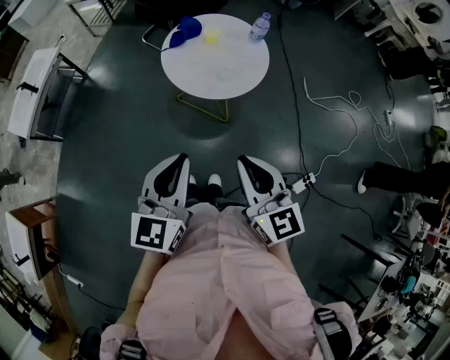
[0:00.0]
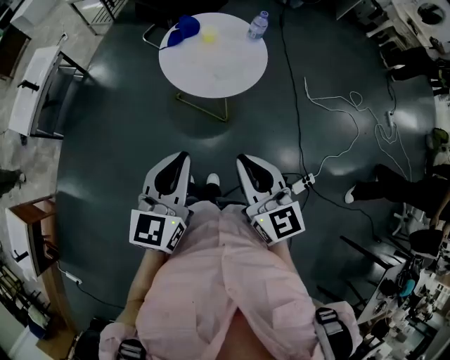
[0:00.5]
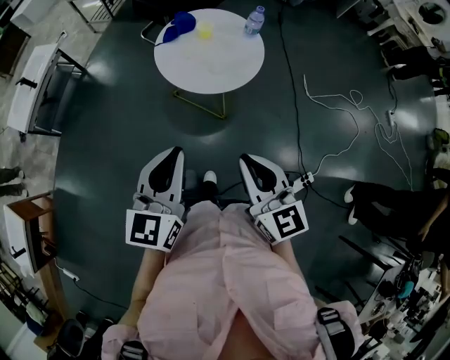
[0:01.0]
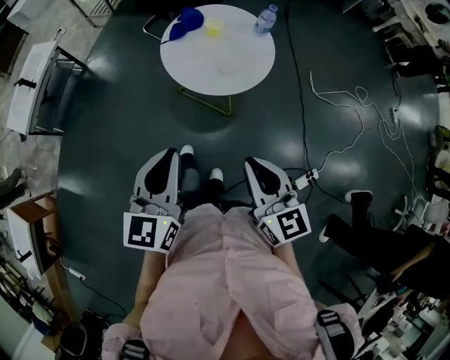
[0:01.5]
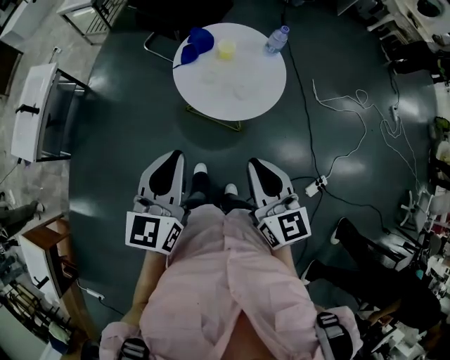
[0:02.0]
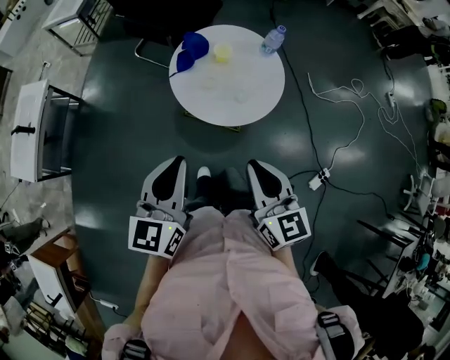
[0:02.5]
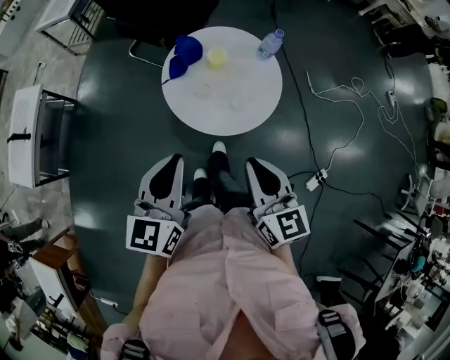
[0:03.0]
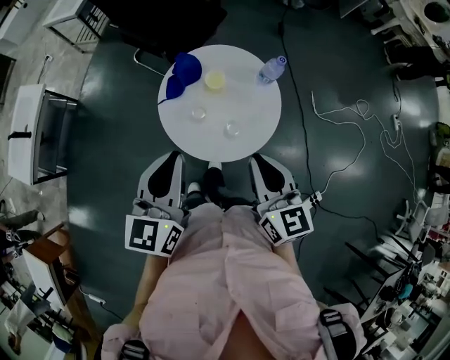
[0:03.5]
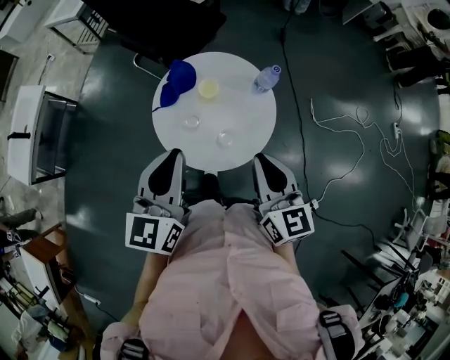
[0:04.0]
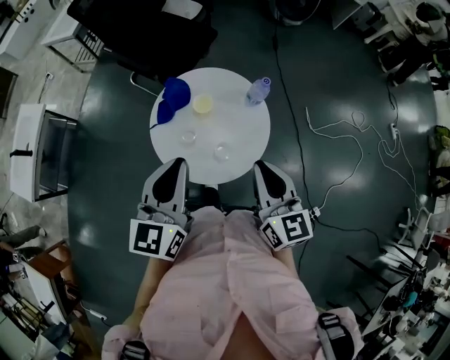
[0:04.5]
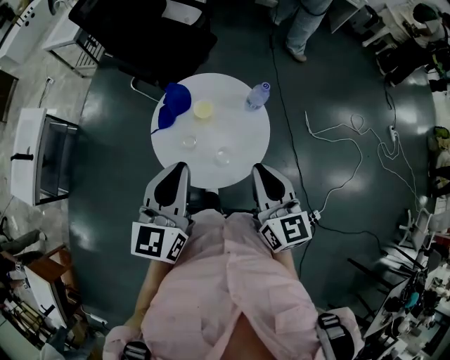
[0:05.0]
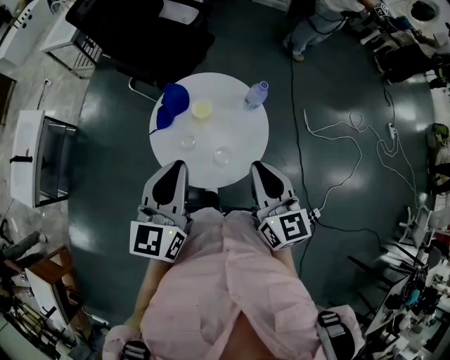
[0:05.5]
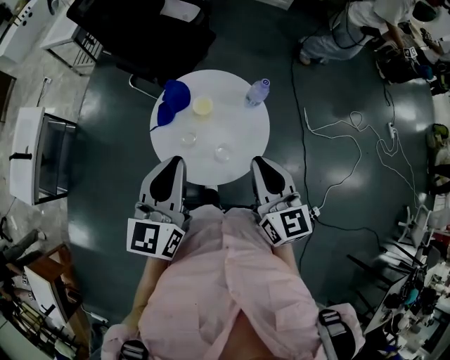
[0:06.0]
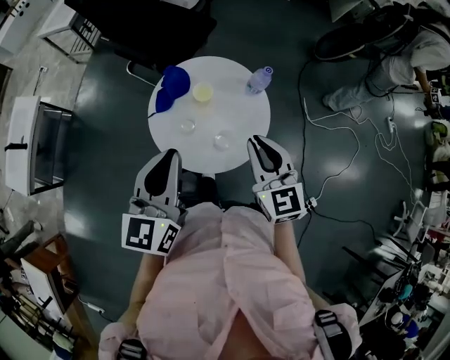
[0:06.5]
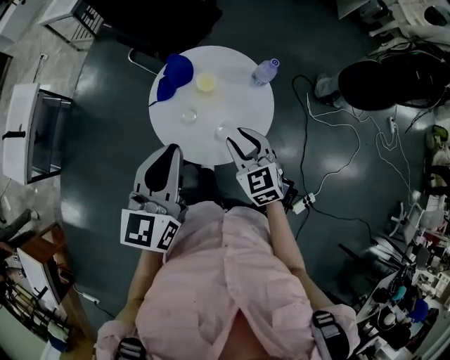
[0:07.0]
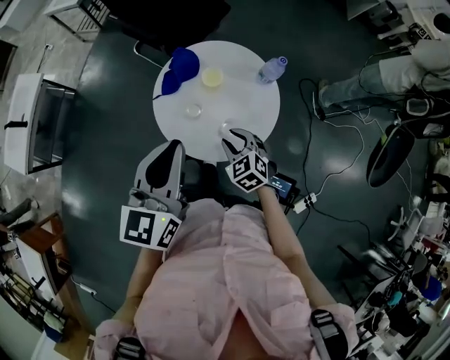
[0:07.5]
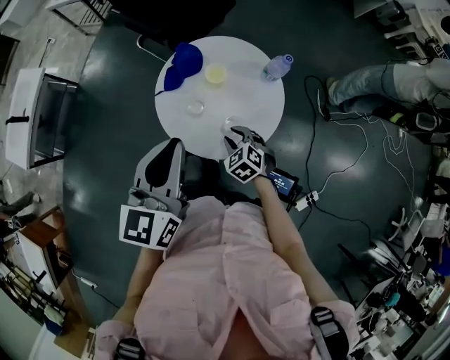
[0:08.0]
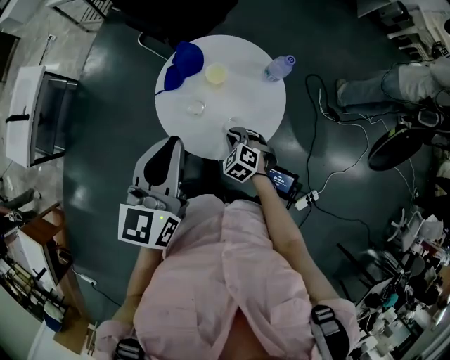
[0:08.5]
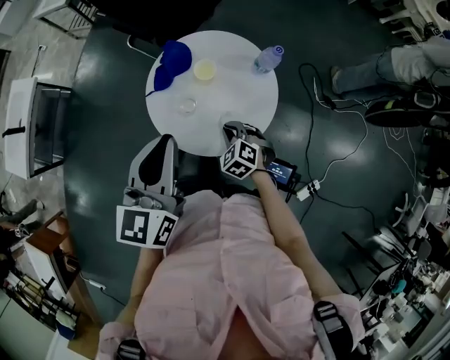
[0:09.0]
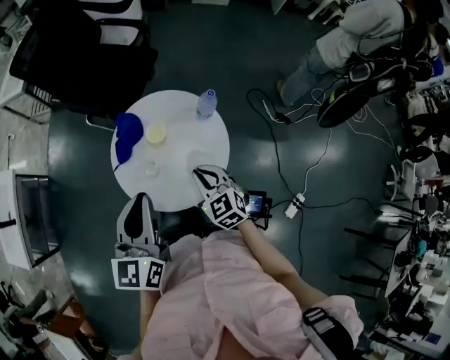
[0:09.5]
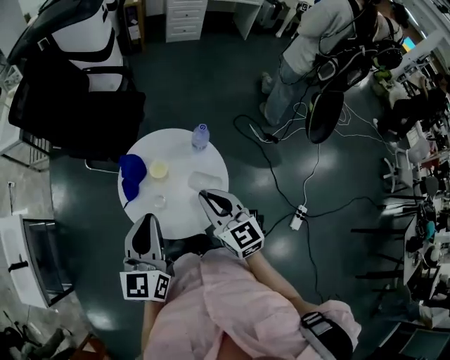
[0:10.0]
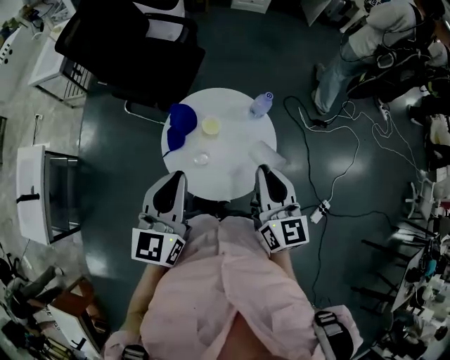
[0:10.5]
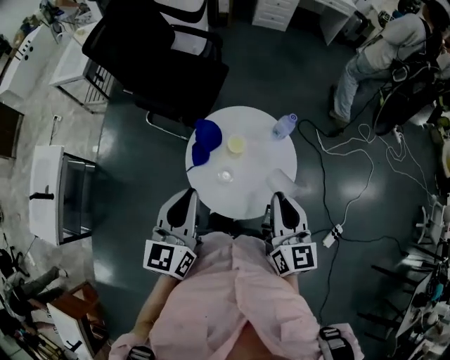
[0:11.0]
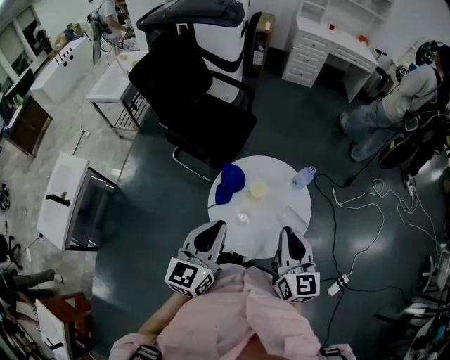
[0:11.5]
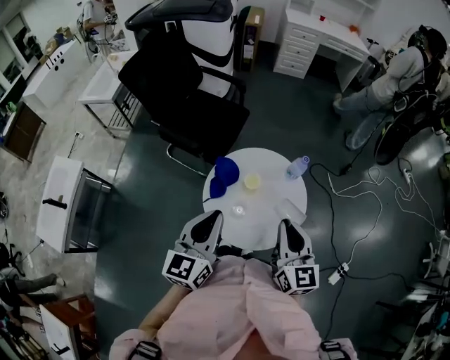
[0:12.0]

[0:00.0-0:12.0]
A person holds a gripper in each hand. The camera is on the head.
0:00.0 to 0:02.0: The left gripper goes roughly 15 cm forward and to the left. Meanwhile the right gripper goes roughly 10 cm forward.
0:02.0 to 0:04.0: The left gripper goes approximately 20 cm forward. The right gripper travels forward and to the right by roughly 25 cm.
0:04.0 to 0:06.0: The grippers stay close to where they were, moving slightly.
0:06.0 to 0:08.0: The right gripper goes about 30 cm downward, tilts its fingers approximately 50 degrees downward, and opens.
0:08.0 to 0:10.0: The left gripper shifts by about 5 cm. The right gripper is displaced upward by roughly 25 cm, points its fingers about 40 degrees further upward, and closes up.
0:10.0 to 0:12.0: The left gripper is displaced to the left by about 10 cm; the right gripper is displaced upward by approximately 5 cm.

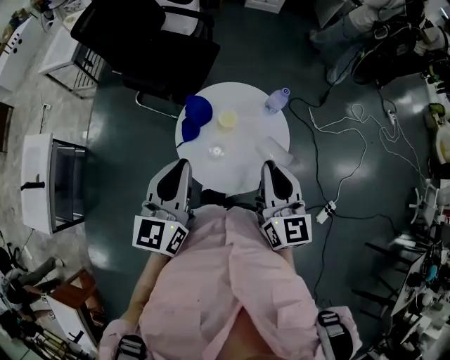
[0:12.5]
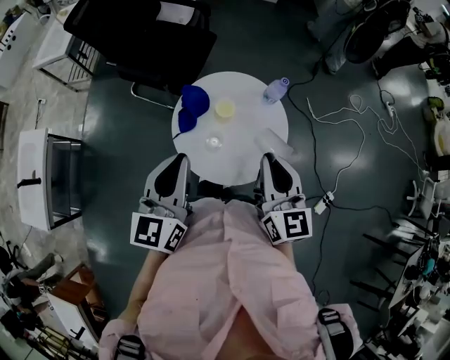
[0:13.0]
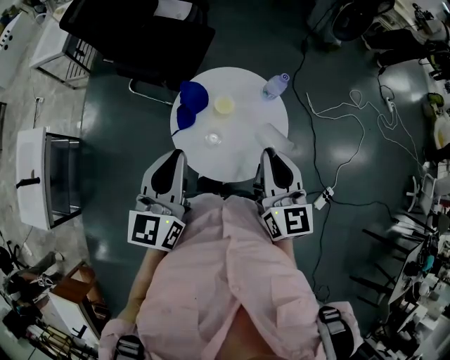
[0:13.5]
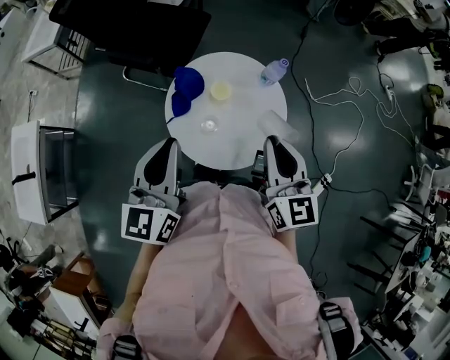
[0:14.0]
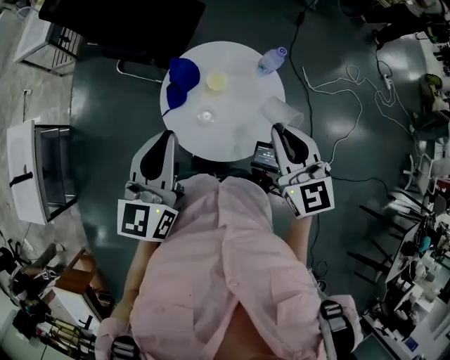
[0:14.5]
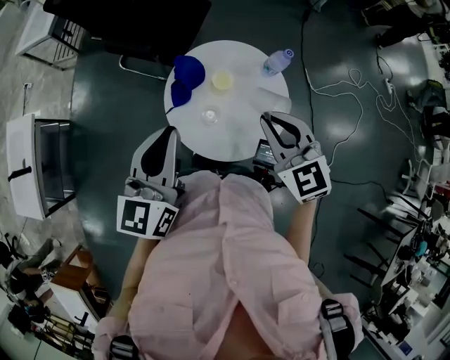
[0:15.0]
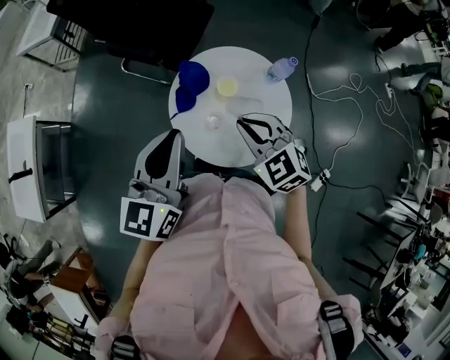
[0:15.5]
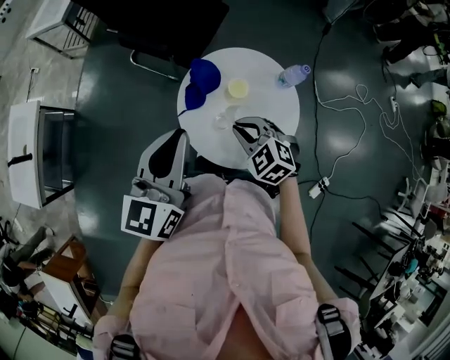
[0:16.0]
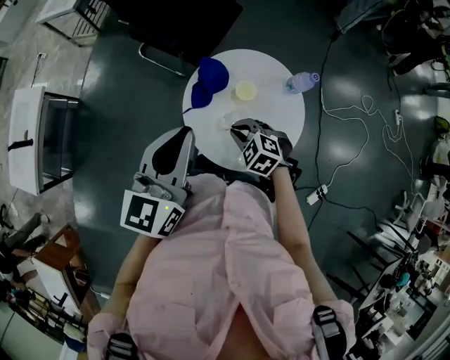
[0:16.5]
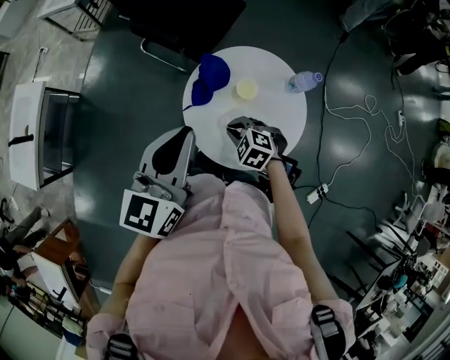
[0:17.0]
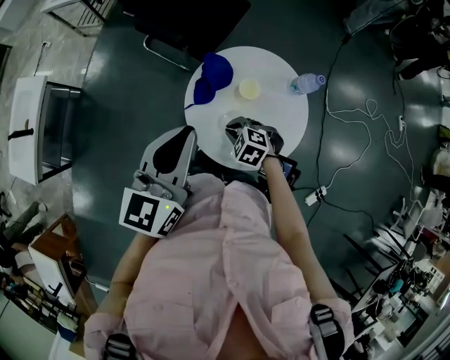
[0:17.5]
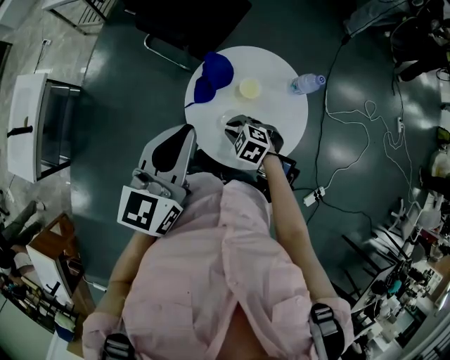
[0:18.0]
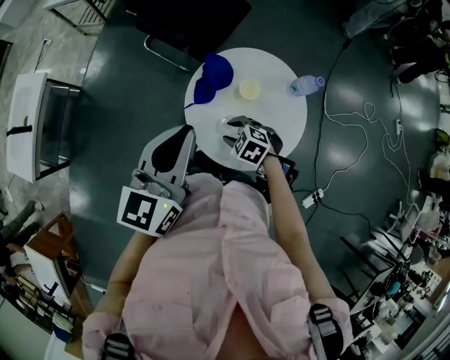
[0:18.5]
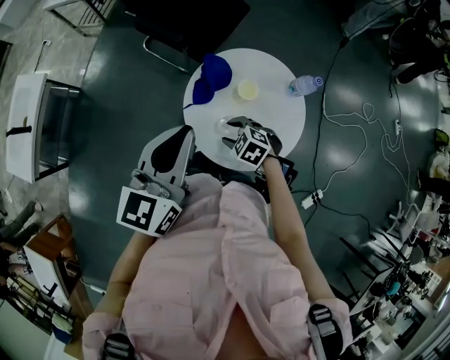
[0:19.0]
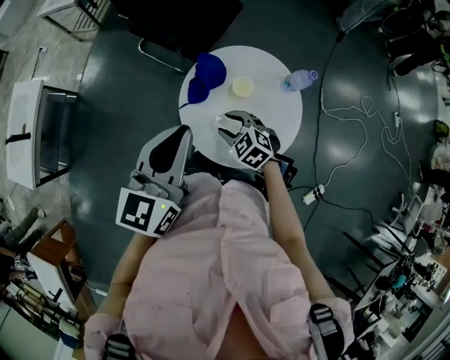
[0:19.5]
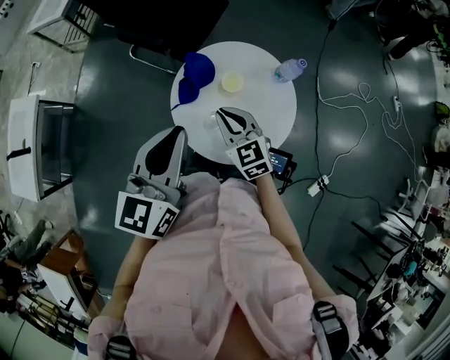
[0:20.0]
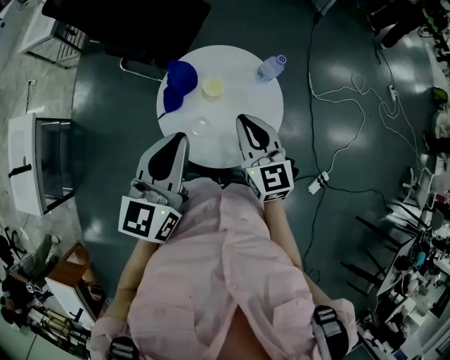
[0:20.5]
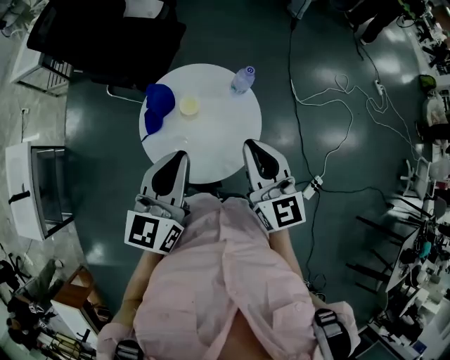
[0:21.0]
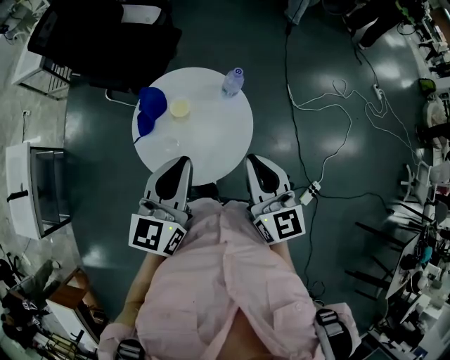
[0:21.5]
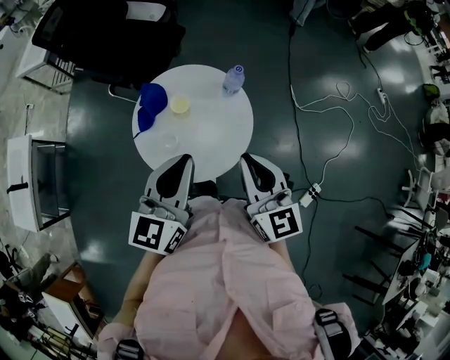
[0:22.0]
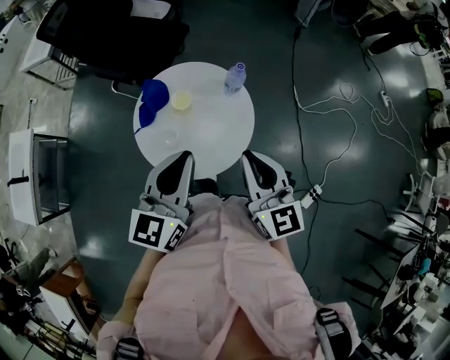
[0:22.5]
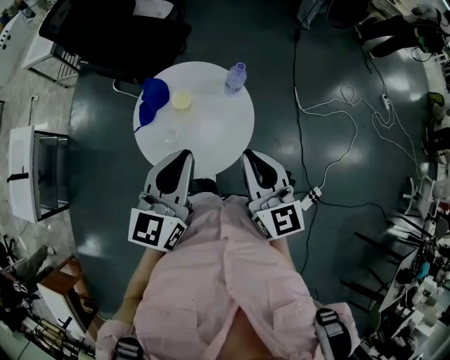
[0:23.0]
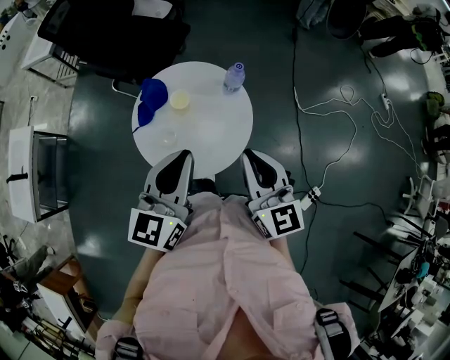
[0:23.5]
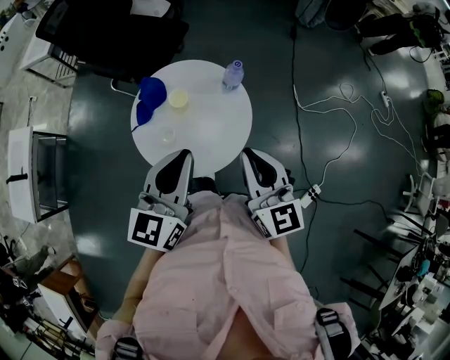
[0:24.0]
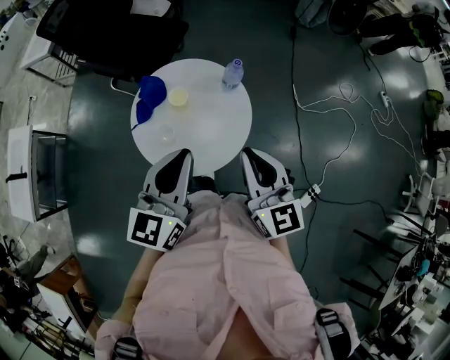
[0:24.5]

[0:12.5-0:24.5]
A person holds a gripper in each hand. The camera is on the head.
0:12.5 to 0:14.5: There are only small adjustments of the grippers.
0:14.5 to 0:16.5: The right gripper travels downward and to the left by about 25 cm, and angles its fingers downward, by roughly 40 degrees.
0:16.5 to 0:18.5: The right gripper goes some 5 cm downward, and opens up.
0:18.5 to 0:20.5: The left gripper changes place by roughly 10 cm. The right gripper goes approximately 20 cm upward, angles its fingers upward, by roughly 50 degrees, and closes up.
0:20.5 to 0:22.5: The right gripper is displaced to the right, backward and upward by some 15 cm, while the left gripper heads to the right, covering about 15 cm.
0:22.5 to 0:24.5: The two grippers keep their place.

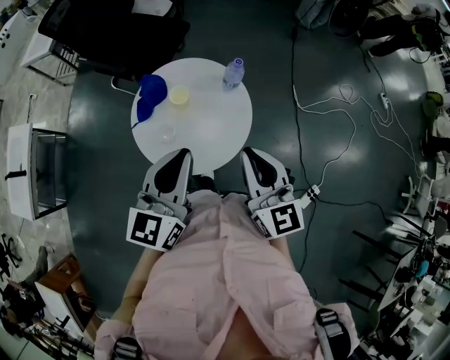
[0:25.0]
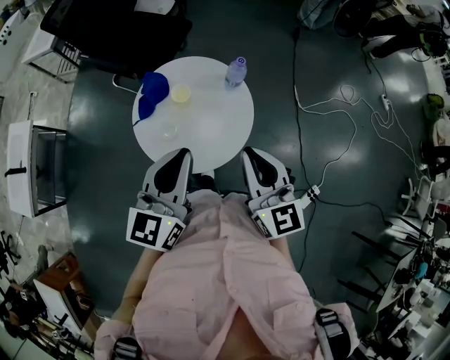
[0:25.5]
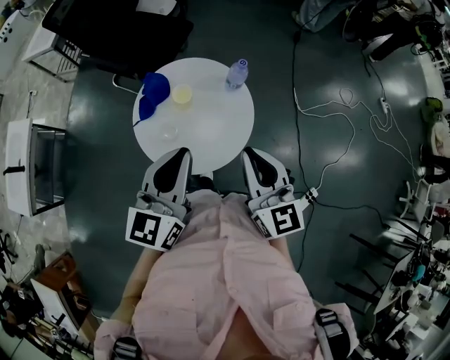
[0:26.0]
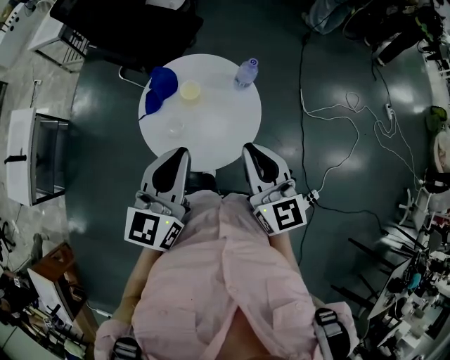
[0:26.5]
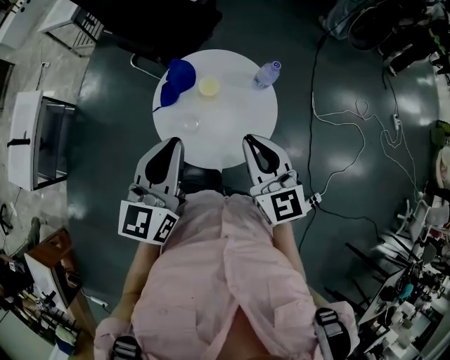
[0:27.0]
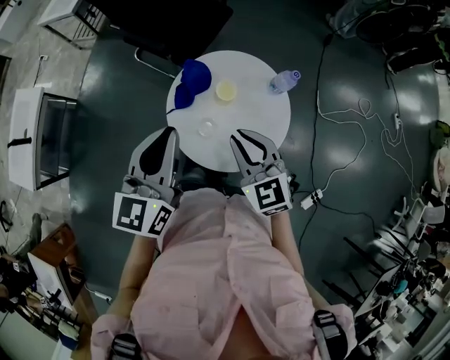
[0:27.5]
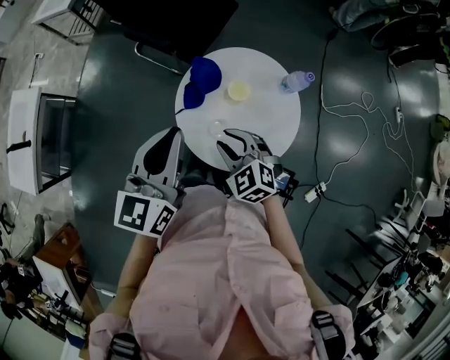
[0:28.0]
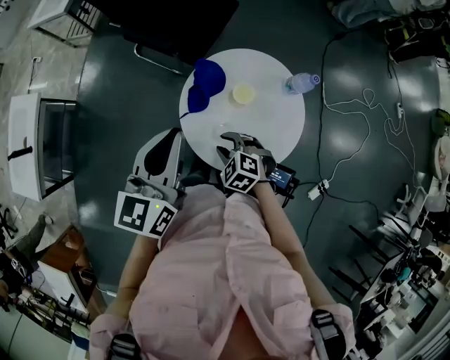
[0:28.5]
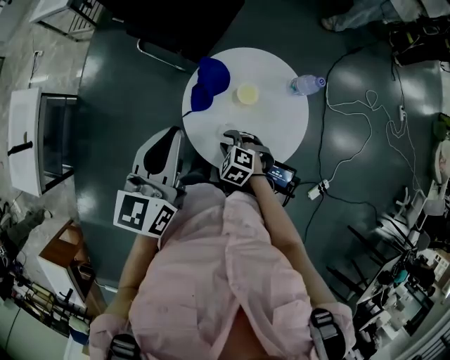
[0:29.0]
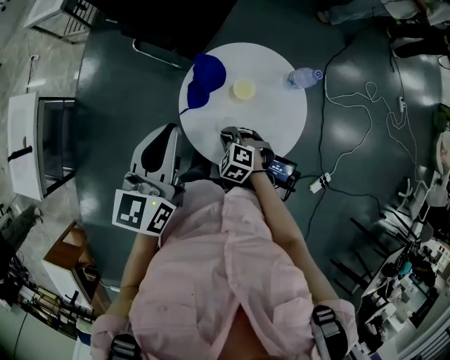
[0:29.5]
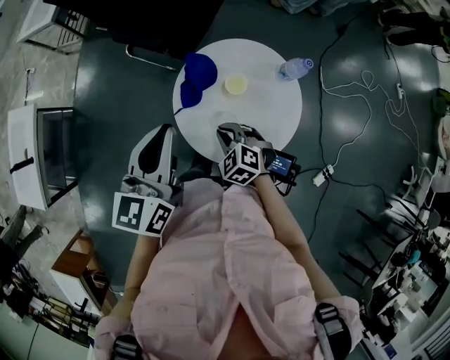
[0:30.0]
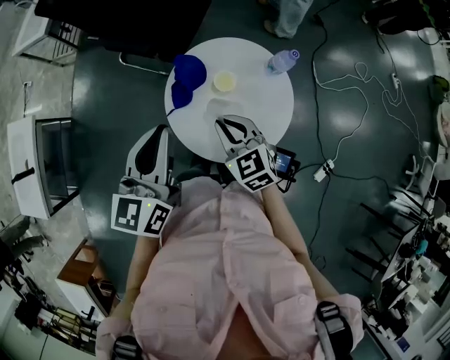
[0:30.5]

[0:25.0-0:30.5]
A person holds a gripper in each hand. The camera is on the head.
0:25.0 to 0:27.0: Both grippers travel together to the left, about 10 cm.
0:27.0 to 0:28.5: The left gripper shifts some 15 cm forward and to the left. The right gripper travels downward and to the left by roughly 30 cm, angles its fingers downward, by approximately 50 degrees, and opens its fingers.
0:28.5 to 0:30.5: The right gripper heads upward, covering approximately 15 cm, turns by roughly 40 degrees, and closes.
